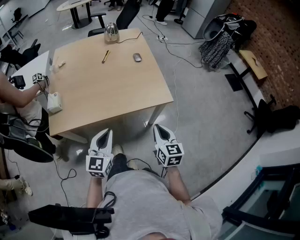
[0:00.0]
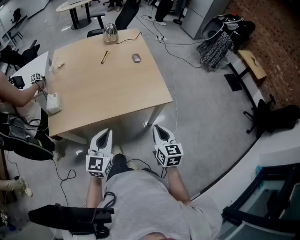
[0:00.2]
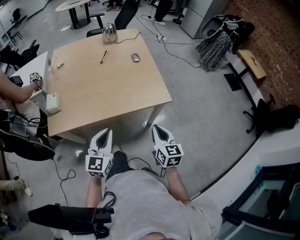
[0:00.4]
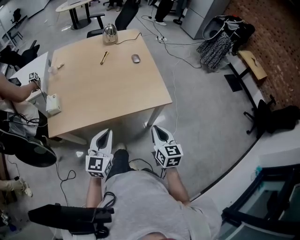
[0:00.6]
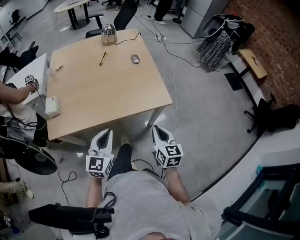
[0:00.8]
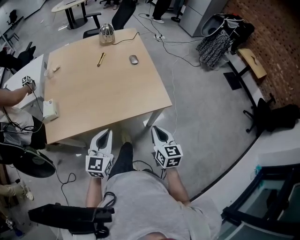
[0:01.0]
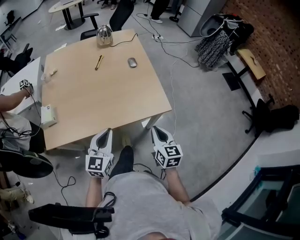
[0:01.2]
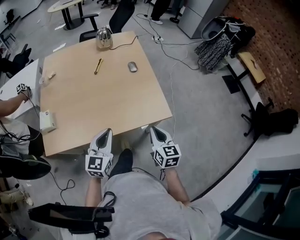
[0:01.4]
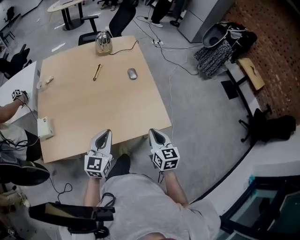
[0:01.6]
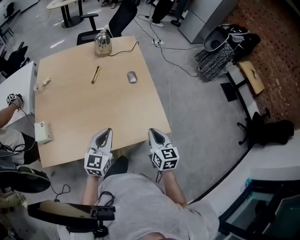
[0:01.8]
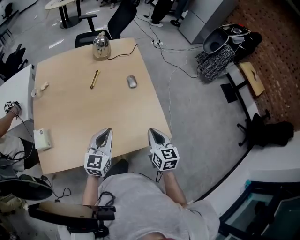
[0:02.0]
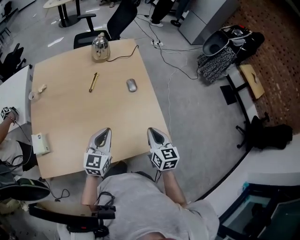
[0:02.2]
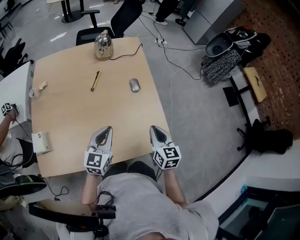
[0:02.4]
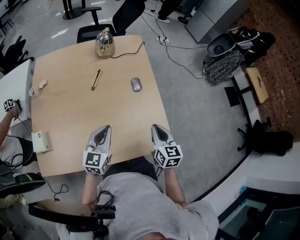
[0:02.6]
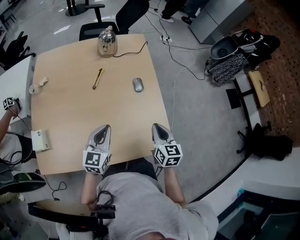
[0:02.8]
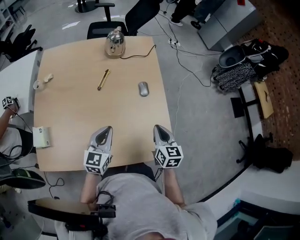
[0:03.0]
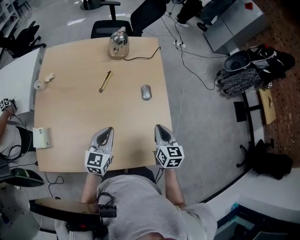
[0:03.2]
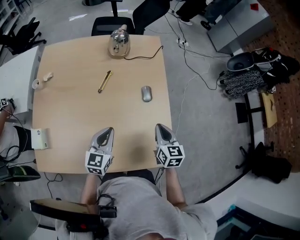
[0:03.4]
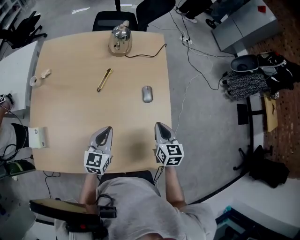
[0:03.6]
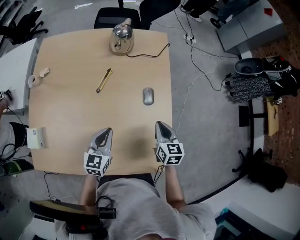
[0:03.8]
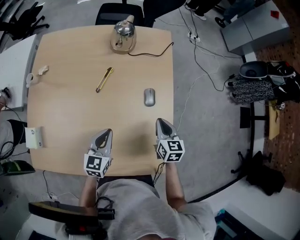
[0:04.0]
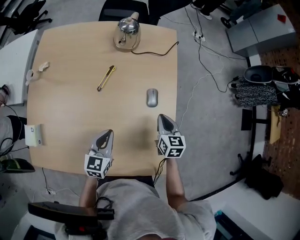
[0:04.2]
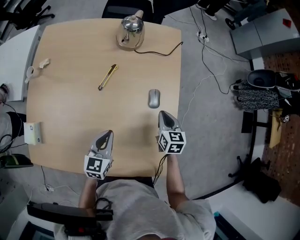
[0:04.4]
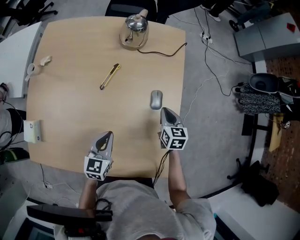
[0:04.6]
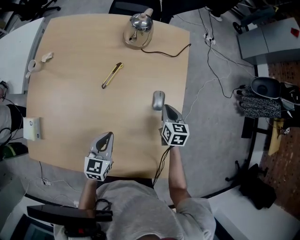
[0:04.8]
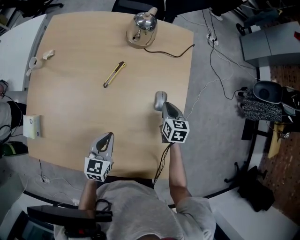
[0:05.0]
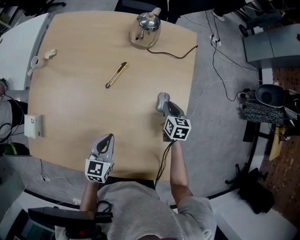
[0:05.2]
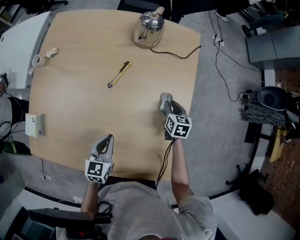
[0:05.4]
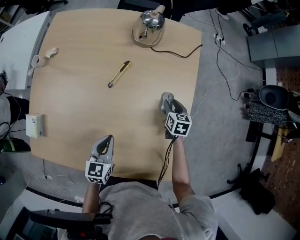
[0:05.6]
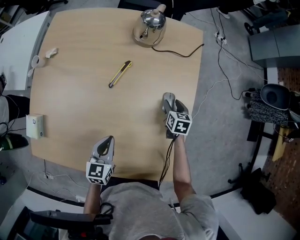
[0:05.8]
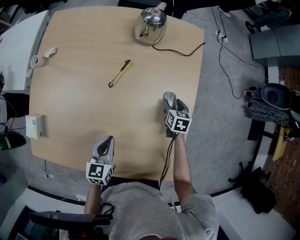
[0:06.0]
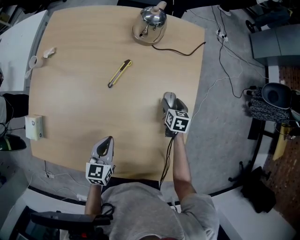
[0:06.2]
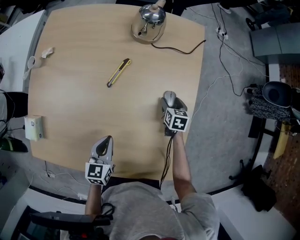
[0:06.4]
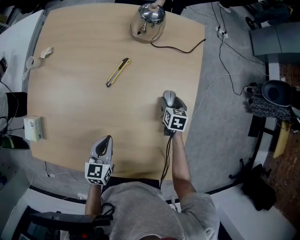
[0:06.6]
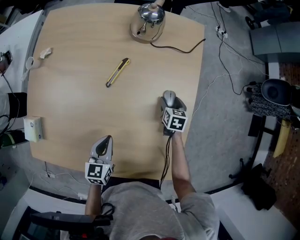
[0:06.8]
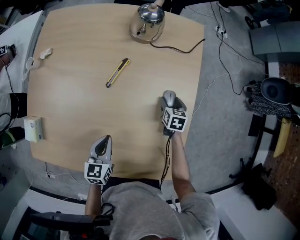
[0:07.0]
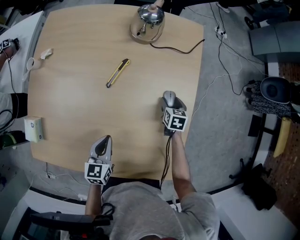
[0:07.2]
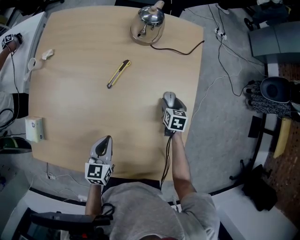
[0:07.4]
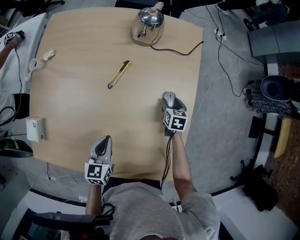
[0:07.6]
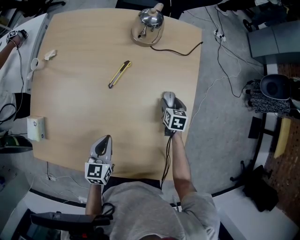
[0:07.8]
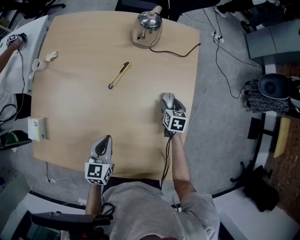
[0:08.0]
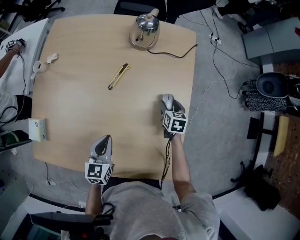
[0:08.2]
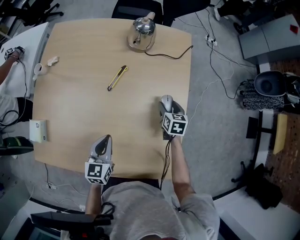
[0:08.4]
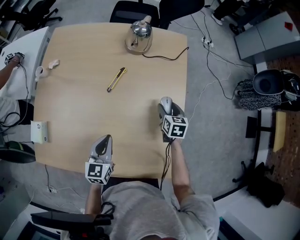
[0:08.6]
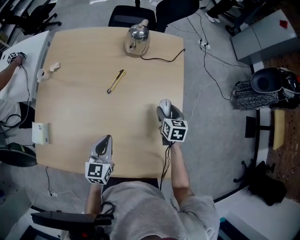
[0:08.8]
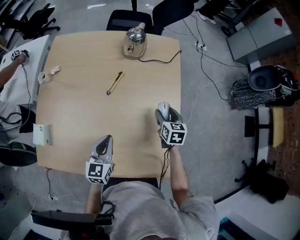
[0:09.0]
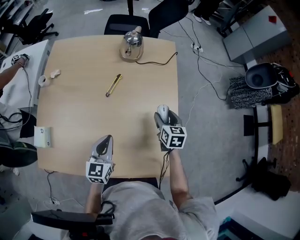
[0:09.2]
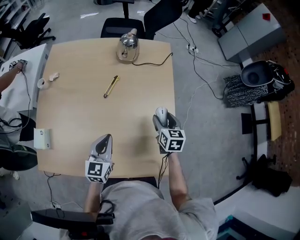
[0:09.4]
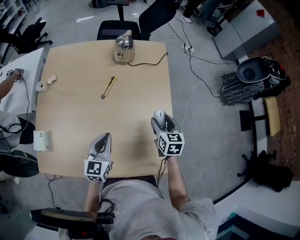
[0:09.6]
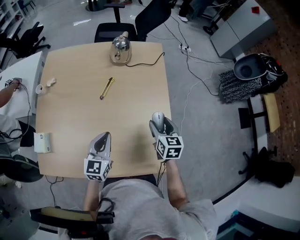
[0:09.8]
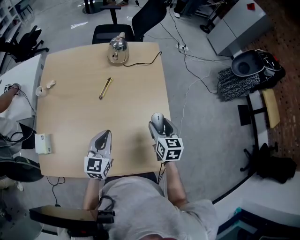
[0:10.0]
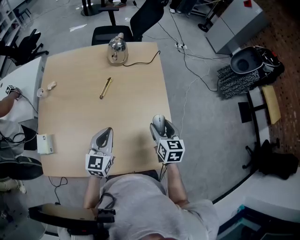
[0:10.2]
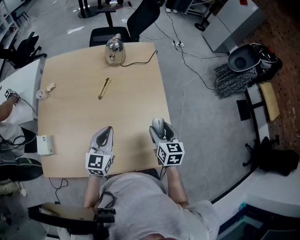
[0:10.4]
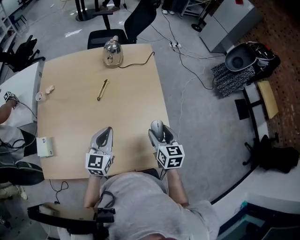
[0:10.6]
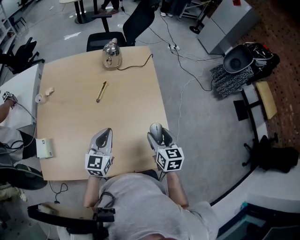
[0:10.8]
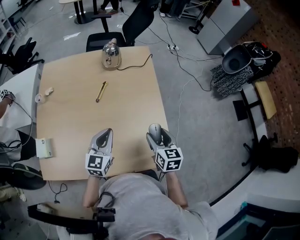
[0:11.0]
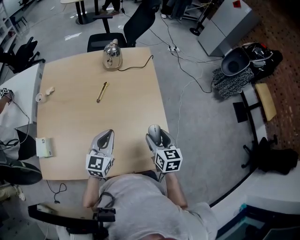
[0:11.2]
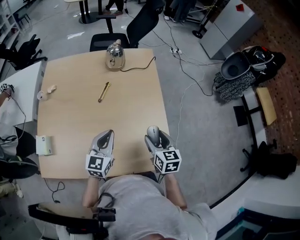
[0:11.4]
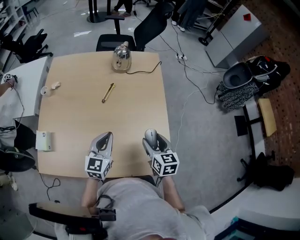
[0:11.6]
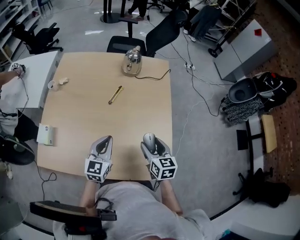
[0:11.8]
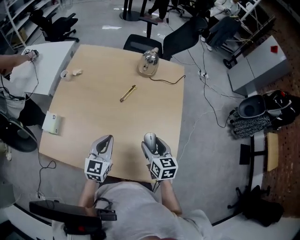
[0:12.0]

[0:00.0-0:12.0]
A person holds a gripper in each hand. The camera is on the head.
0:00.0 to 0:01.6: Both grippers move forward, roughly 20 cm.
0:01.6 to 0:03.0: Both grippers move forward, approximately 20 cm.
0:03.0 to 0:04.4: The right gripper moves forward and downward, roughly 25 cm. The left gripper travels forward and downward by roughly 15 cm.
0:04.4 to 0:06.0: The left gripper ends up about 5 cm from where it was. The right gripper travels downward and forward by roughly 15 cm, and opens its fingers.
0:06.0 to 0:07.6: The grippers stay close to where they were, moving slightly.
0:07.6 to 0:09.0: The right gripper heads upward and backward, covering about 15 cm. The left gripper moves upward, roughly 10 cm.
0:09.0 to 0:10.4: The right gripper heads backward and upward, covering roughly 20 cm. The left gripper is displaced upward by roughly 5 cm.
0:10.4 to 0:12.0: The right gripper is displaced to the left by approximately 10 cm, and rotates roughly 20 degrees, while the left gripper travels to the left by approximately 5 cm.

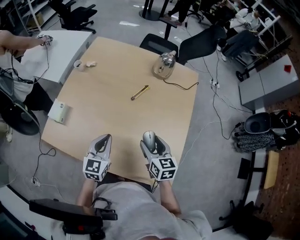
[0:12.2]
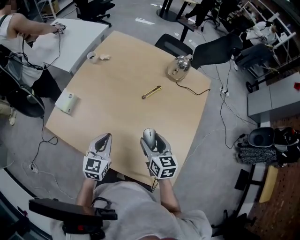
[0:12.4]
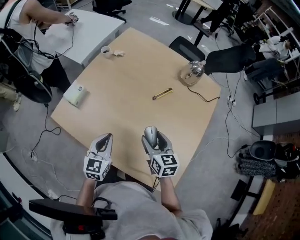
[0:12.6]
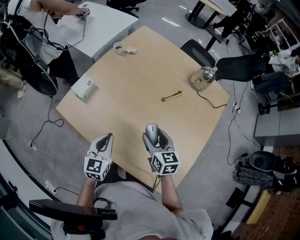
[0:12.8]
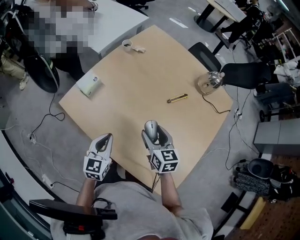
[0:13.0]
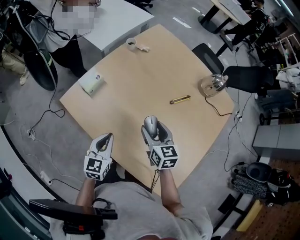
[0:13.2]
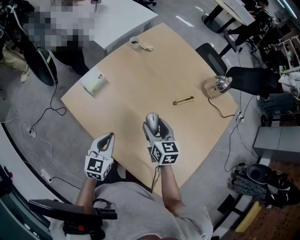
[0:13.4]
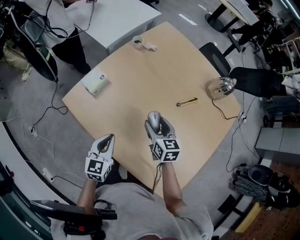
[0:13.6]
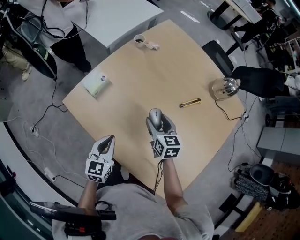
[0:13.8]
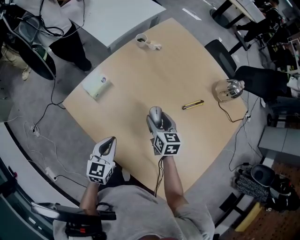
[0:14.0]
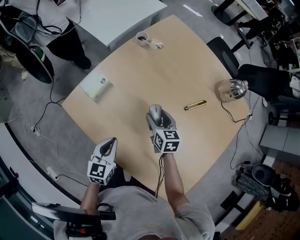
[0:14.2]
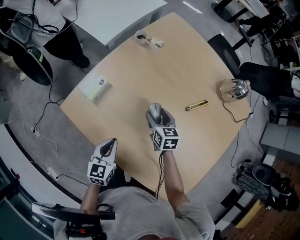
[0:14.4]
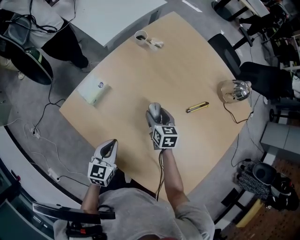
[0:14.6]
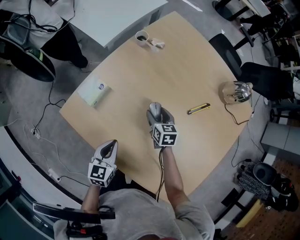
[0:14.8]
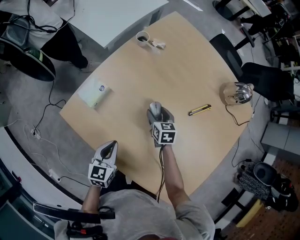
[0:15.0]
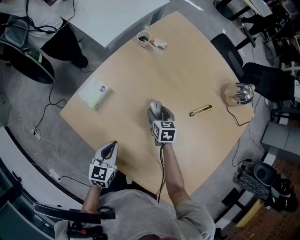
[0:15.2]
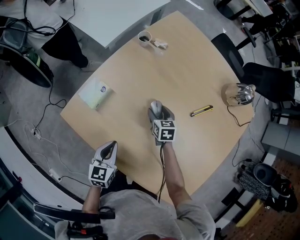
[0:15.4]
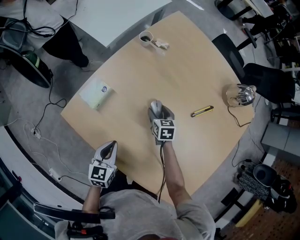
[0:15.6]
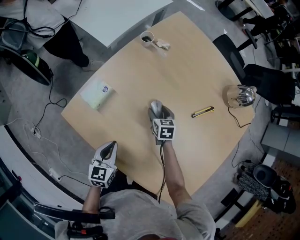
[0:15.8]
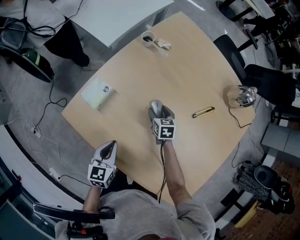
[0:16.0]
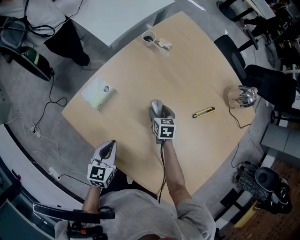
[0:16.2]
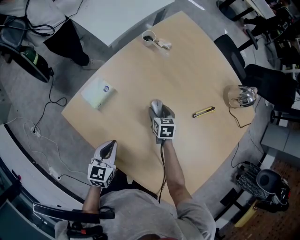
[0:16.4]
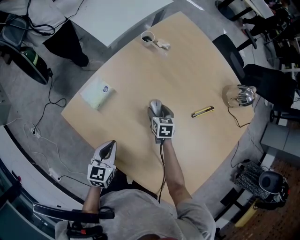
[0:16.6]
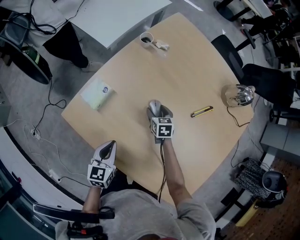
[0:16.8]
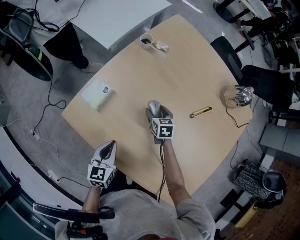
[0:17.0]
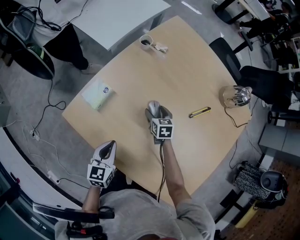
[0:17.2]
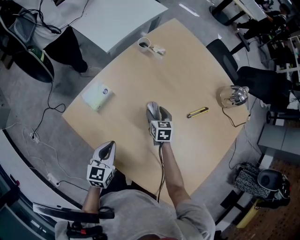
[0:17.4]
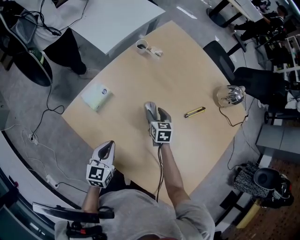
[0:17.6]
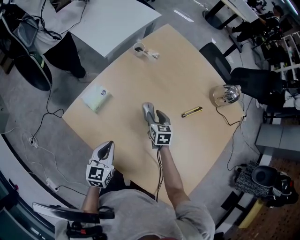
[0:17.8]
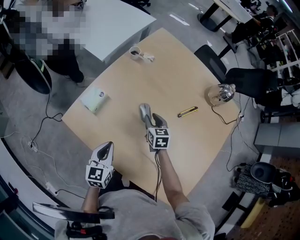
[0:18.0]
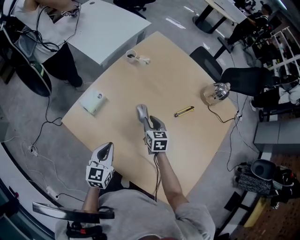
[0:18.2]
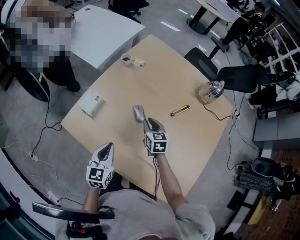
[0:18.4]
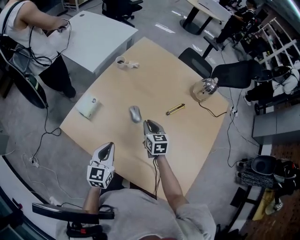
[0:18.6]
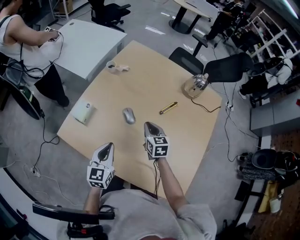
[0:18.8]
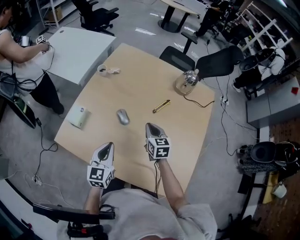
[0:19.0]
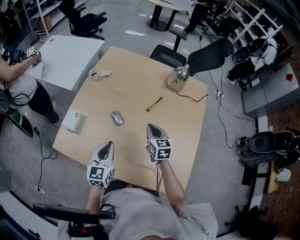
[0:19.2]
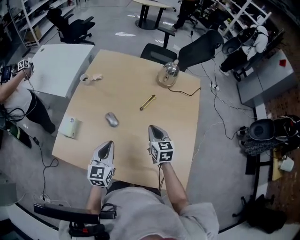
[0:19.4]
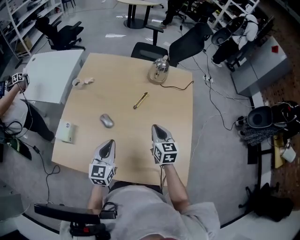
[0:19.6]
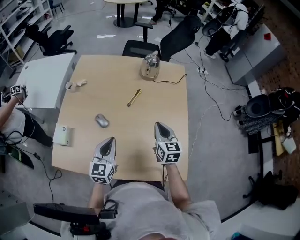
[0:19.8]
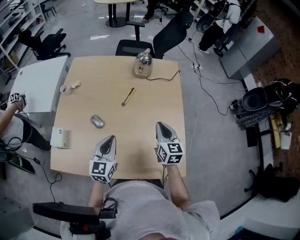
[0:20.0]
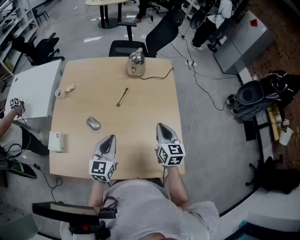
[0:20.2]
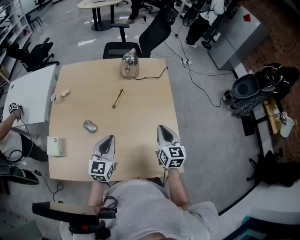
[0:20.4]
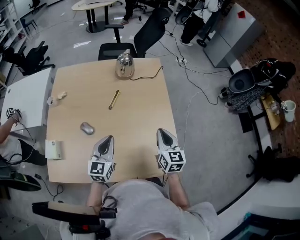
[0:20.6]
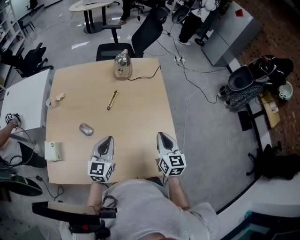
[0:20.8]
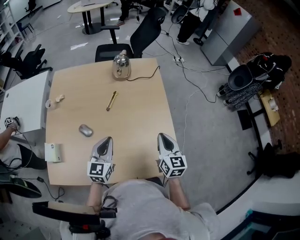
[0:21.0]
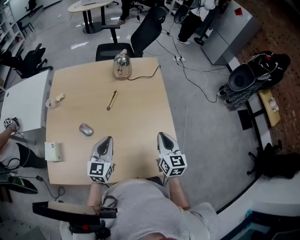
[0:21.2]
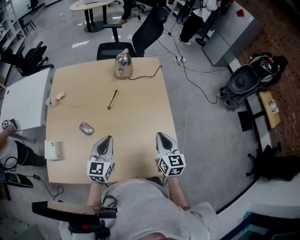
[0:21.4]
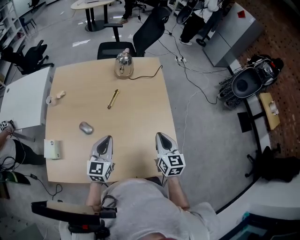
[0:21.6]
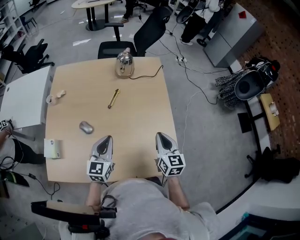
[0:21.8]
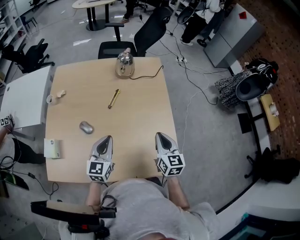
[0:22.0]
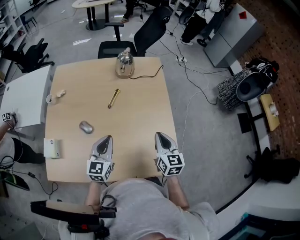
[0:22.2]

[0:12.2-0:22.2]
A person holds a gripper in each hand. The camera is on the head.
0:12.2 to 0:13.6: The right gripper heads to the left and forward, covering some 25 cm, and rotates roughly 20 degrees. The left gripper travels to the left and downward by approximately 20 cm, and swivels approximately 30 degrees.
0:13.6 to 0:15.0: The right gripper moves downward and forward, some 20 cm; the left gripper shifts about 10 cm downward and forward.
0:15.0 to 0:16.4: The grippers stay close to where they were, moving slightly.
0:16.4 to 0:18.0: The right gripper moves upward, about 10 cm, and closes up. Meanwhile the left gripper heads upward, covering about 5 cm.
0:18.0 to 0:19.4: The right gripper travels to the right, upward and backward by about 25 cm, rotates some 20 degrees, and closes up. Meanwhile the left gripper travels to the right and upward by about 15 cm, and turns by about 30 degrees.
0:19.4 to 0:20.8: The left gripper goes approximately 15 cm to the right, and turns by approximately 20 degrees. Meanwhile the right gripper shifts roughly 20 cm to the right and backward, and rotates about 30 degrees.
0:20.8 to 0:22.2: The grippers make only small movements.

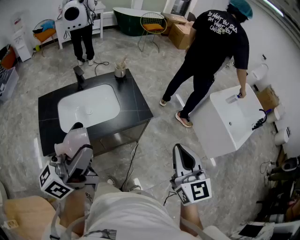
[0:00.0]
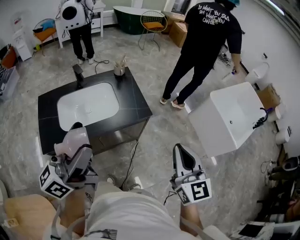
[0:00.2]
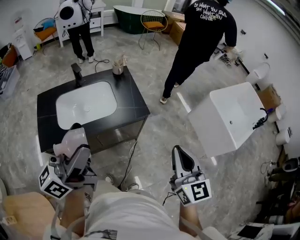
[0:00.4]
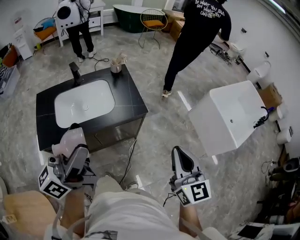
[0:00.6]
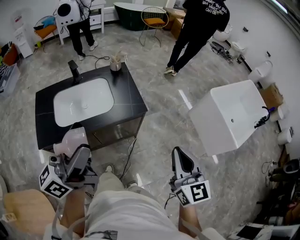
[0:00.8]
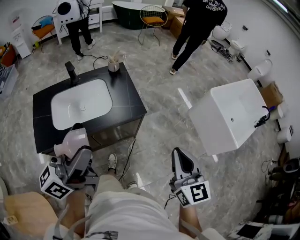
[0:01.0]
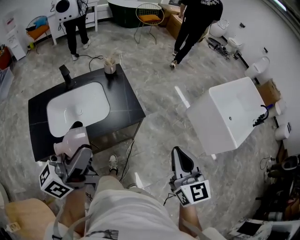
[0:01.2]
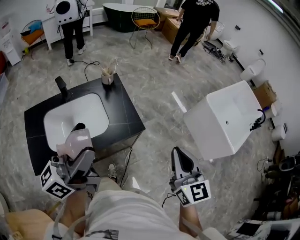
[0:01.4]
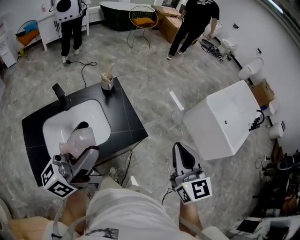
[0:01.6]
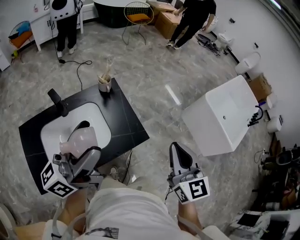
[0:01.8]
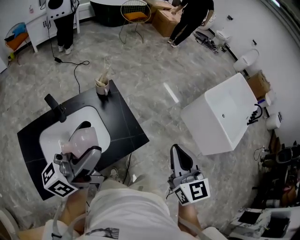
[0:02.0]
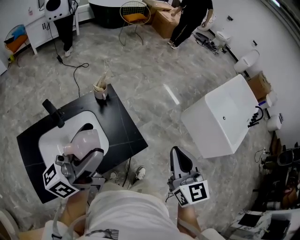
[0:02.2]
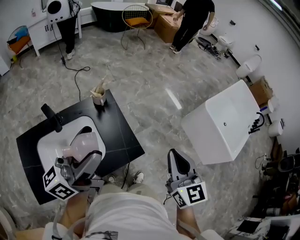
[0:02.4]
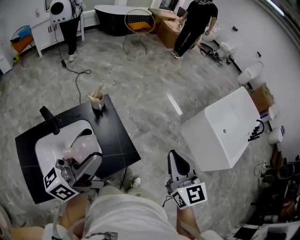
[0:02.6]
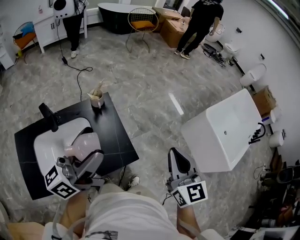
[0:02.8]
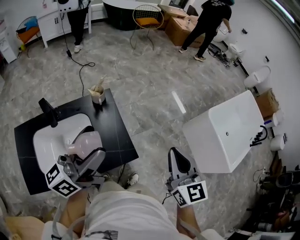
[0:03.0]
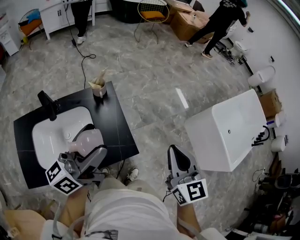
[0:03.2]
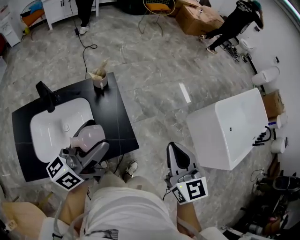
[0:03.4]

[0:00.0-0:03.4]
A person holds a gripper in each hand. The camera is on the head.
0:00.0 to 0:01.6: The grippers both shift forward by some 20 cm.
0:01.6 to 0:03.4: The right gripper shifts roughly 15 cm forward, while the left gripper moves forward and downward, some 20 cm.
